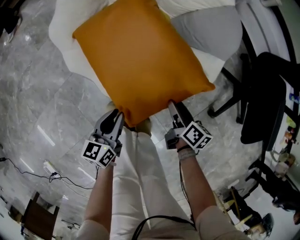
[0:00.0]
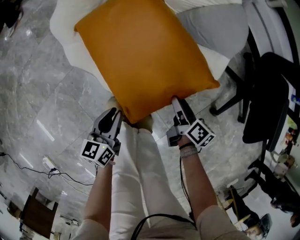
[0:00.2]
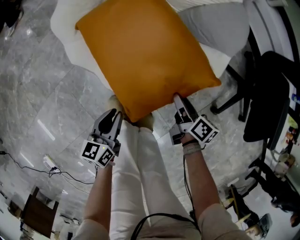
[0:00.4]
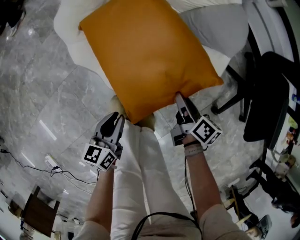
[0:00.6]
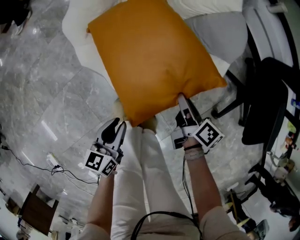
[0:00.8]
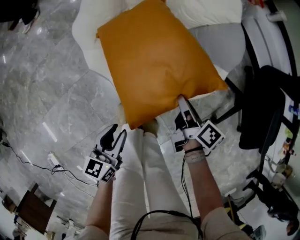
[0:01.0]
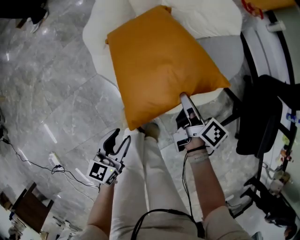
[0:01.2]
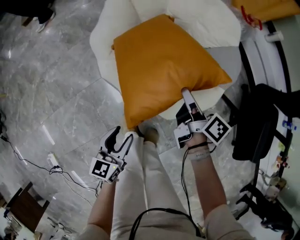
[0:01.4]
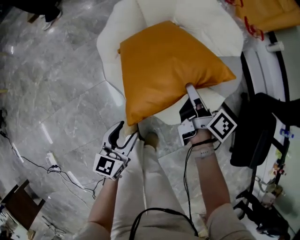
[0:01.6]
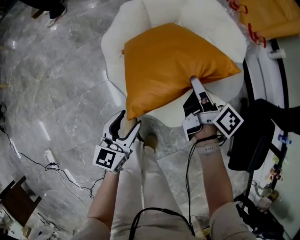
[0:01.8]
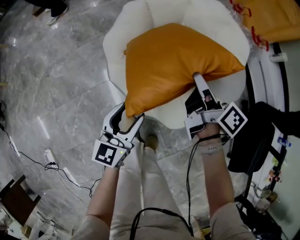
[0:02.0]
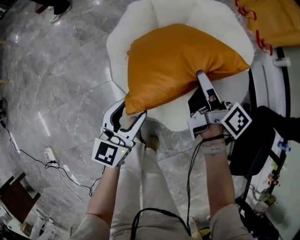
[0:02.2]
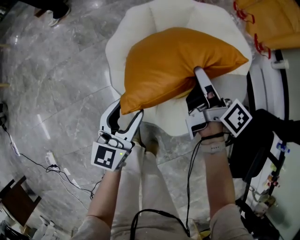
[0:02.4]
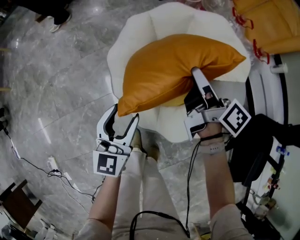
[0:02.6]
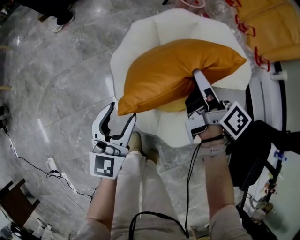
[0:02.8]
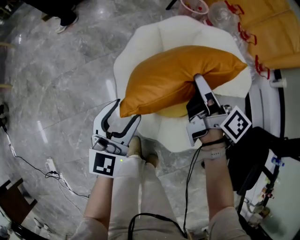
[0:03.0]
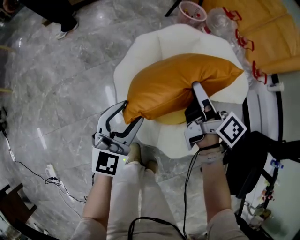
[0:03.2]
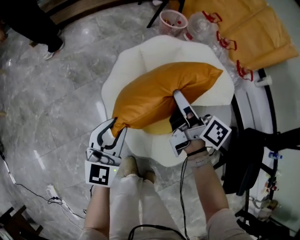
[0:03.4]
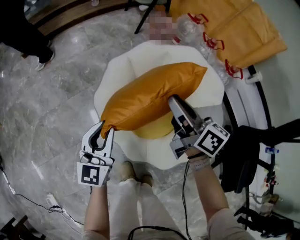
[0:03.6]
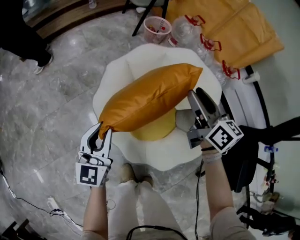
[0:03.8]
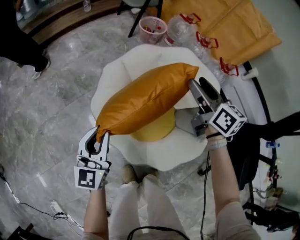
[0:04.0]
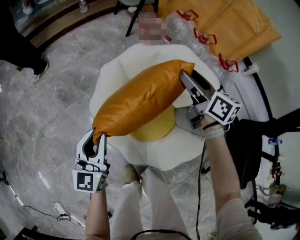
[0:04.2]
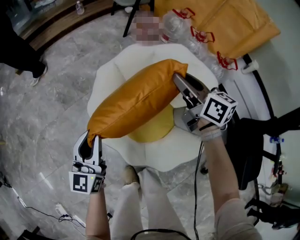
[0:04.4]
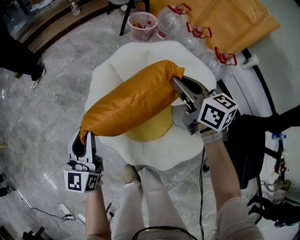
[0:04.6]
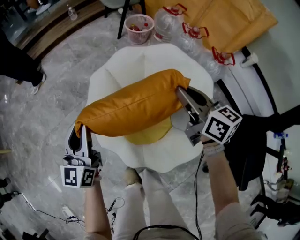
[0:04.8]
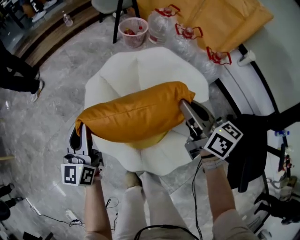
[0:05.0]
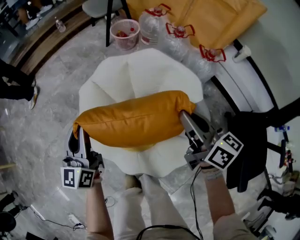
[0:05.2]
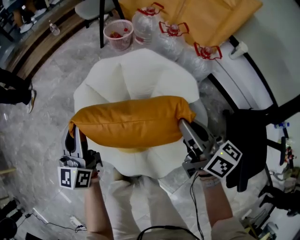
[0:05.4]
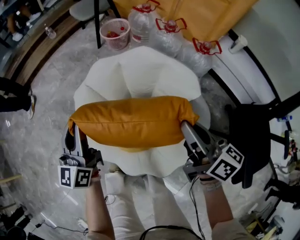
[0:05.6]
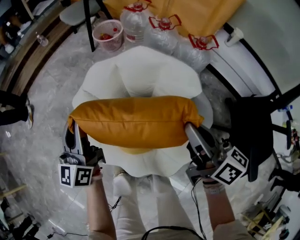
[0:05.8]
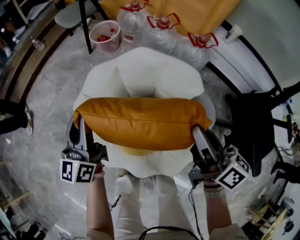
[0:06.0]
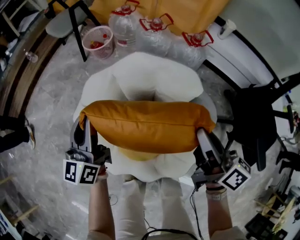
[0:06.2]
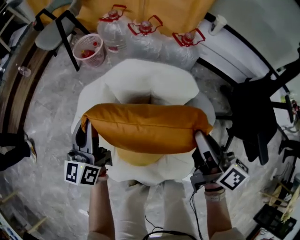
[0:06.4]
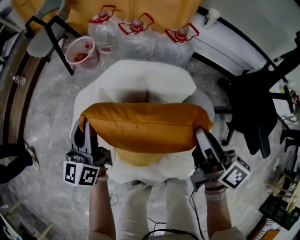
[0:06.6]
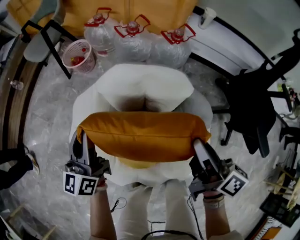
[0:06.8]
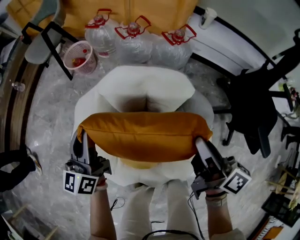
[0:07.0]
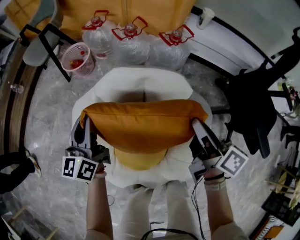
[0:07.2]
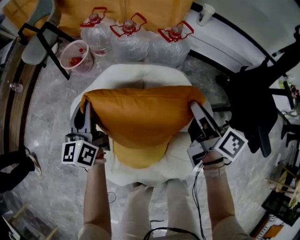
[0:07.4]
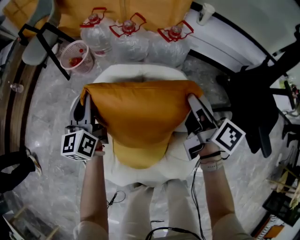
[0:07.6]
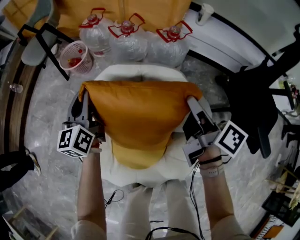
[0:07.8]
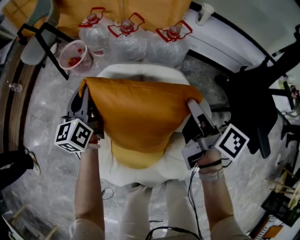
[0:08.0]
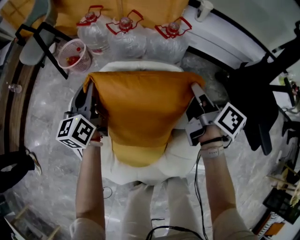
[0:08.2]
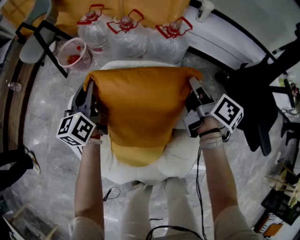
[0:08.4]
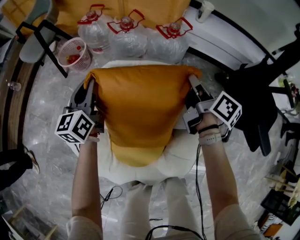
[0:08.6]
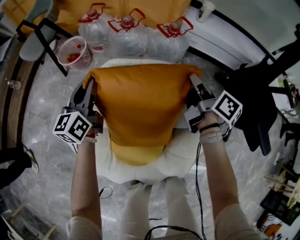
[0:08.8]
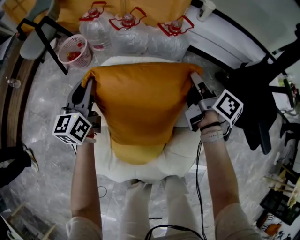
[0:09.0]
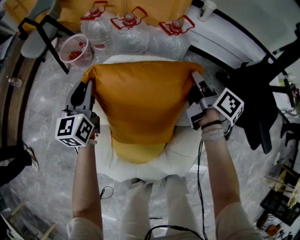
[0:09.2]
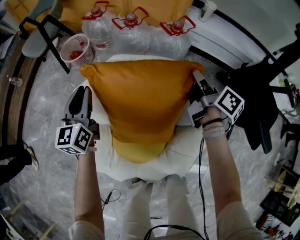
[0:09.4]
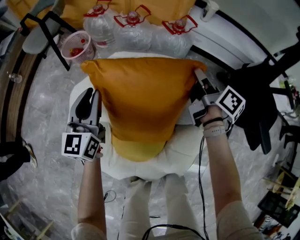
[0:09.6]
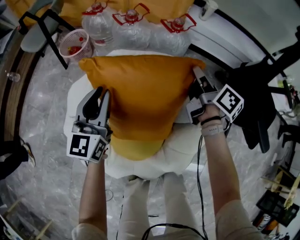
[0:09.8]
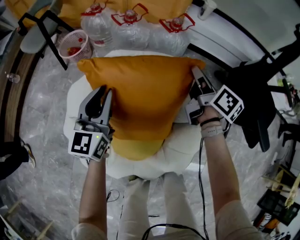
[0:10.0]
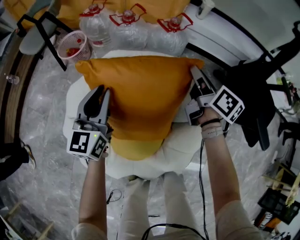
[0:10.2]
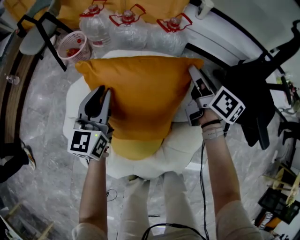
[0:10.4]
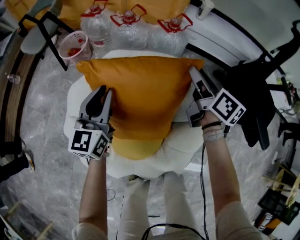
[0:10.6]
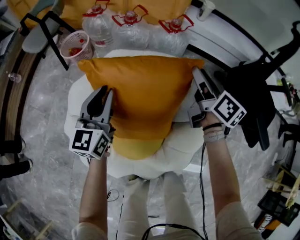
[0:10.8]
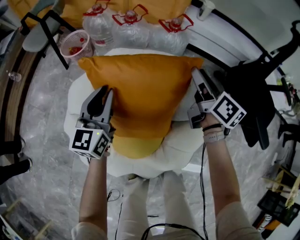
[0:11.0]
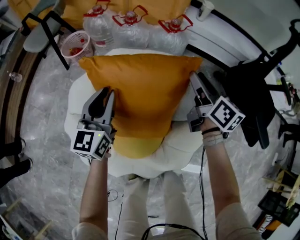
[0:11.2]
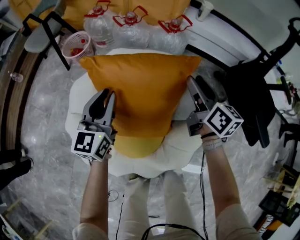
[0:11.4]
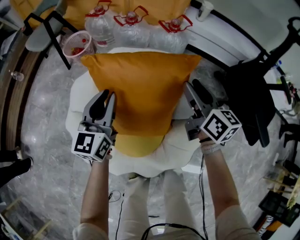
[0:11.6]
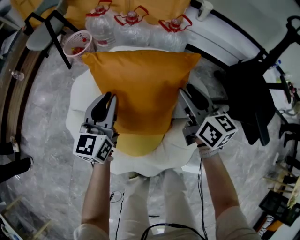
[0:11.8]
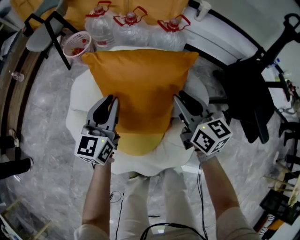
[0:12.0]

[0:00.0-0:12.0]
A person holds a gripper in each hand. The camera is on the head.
0:00.0 to 0:01.6: The left gripper moves upward and to the left, about 15 cm, and opens up; the right gripper is displaced upward, forward and to the left by roughly 30 cm, and closes.
0:01.6 to 0:03.0: The left gripper goes some 25 cm forward and upward, and swivels some 30 degrees; the right gripper shifts approximately 20 cm forward, upward and to the left.
0:03.0 to 0:04.4: The right gripper shifts some 10 cm to the right and forward, changes its angle by about 30 degrees, and opens, then closes once more; the left gripper moves forward, about 5 cm, and closes.
0:04.4 to 0:06.0: The left gripper moves forward and to the right, about 25 cm, while the right gripper goes about 15 cm to the right and backward, turns by approximately 40 degrees, and closes up.
0:06.0 to 0:07.6: The right gripper is displaced forward, downward and to the right by some 15 cm, and rotates approximately 30 degrees. Meanwhile the left gripper shifts roughly 20 cm forward and to the right.
0:07.6 to 0:09.0: The right gripper moves forward, roughly 5 cm.
0:09.0 to 0:10.4: The left gripper is displaced backward and to the right by some 10 cm; the right gripper opens up.
0:10.4 to 0:12.0: The left gripper shifts roughly 5 cm backward; the right gripper goes roughly 15 cm backward and to the left, and changes its angle by approximately 30 degrees.

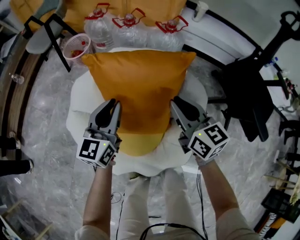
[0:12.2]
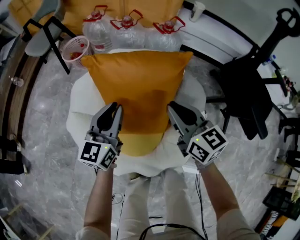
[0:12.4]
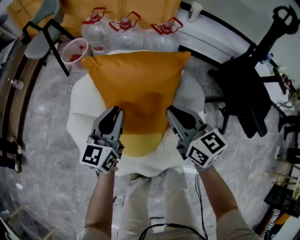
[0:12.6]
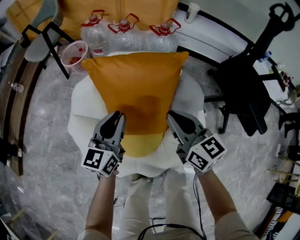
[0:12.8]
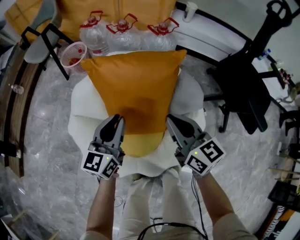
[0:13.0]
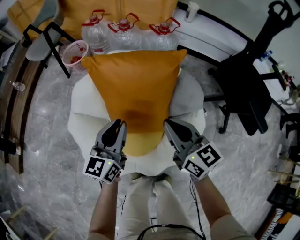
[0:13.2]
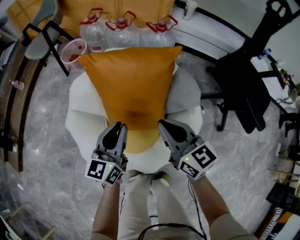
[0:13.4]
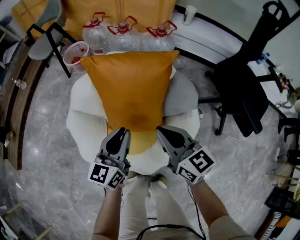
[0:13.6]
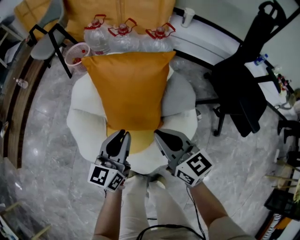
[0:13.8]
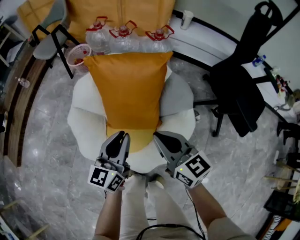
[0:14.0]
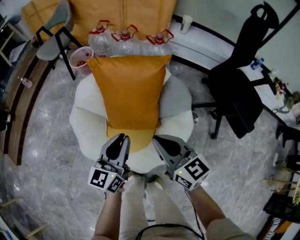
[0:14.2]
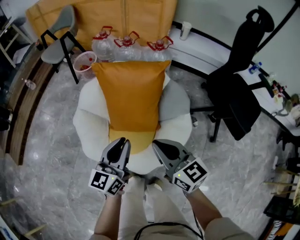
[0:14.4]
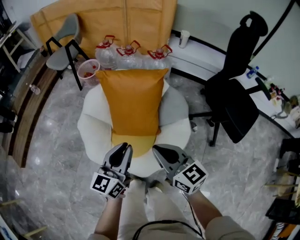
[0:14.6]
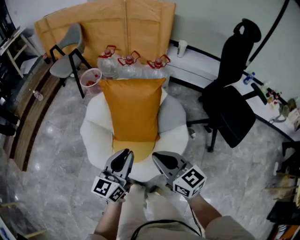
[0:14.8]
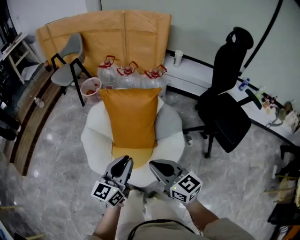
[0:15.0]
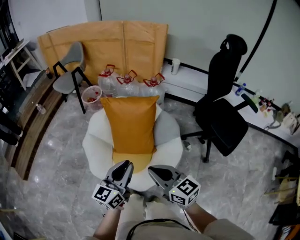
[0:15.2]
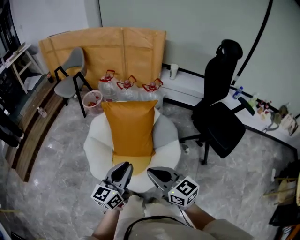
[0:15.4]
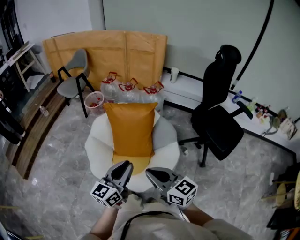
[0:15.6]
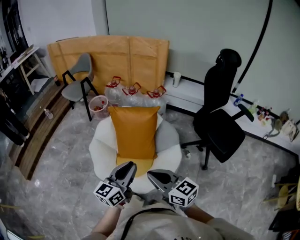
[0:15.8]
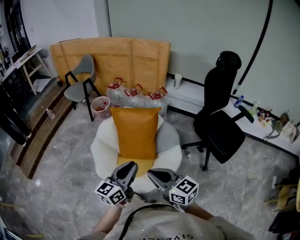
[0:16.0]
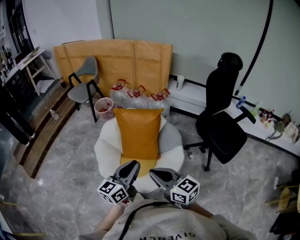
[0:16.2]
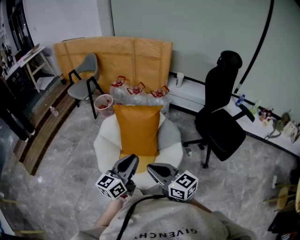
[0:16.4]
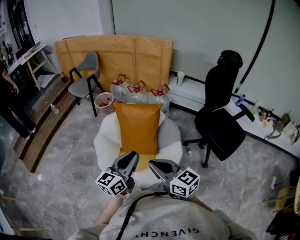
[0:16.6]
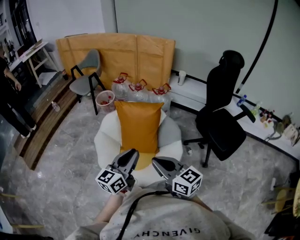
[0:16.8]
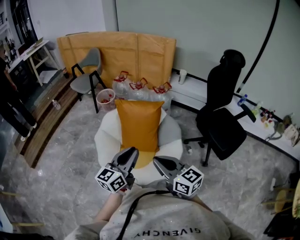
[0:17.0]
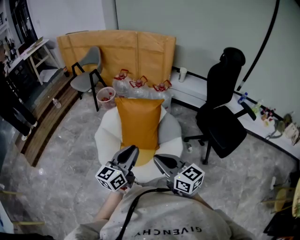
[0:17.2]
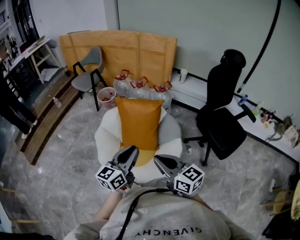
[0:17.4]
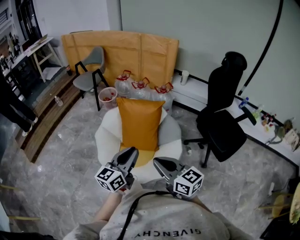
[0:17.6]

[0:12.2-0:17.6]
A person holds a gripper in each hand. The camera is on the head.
0:12.2 to 0:13.6: Both grippers move backward, about 10 cm.
0:13.6 to 0:15.0: The right gripper heads backward and upward, covering some 20 cm; the left gripper moves upward and backward, some 20 cm.
0:15.0 to 0:16.2: The left gripper shifts approximately 10 cm upward. Meanwhile the right gripper travels upward and backward by some 10 cm.
0:16.2 to 0:17.6: There are only small adjustments of the grippers.

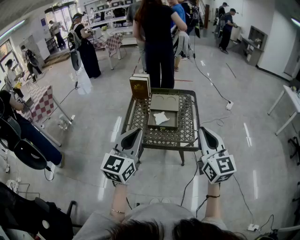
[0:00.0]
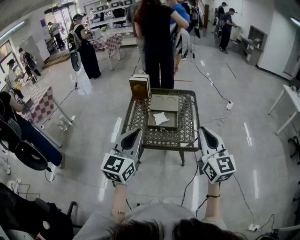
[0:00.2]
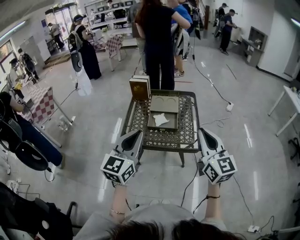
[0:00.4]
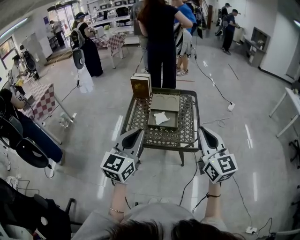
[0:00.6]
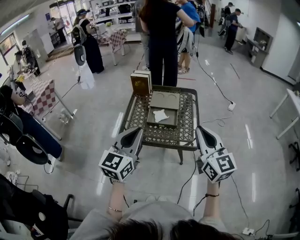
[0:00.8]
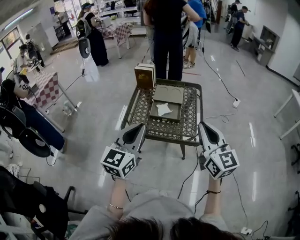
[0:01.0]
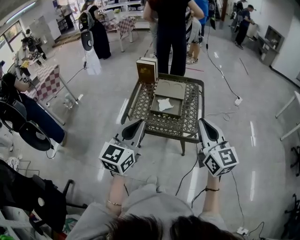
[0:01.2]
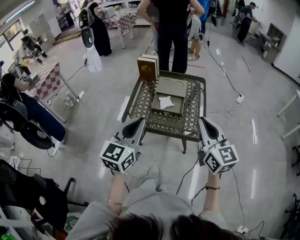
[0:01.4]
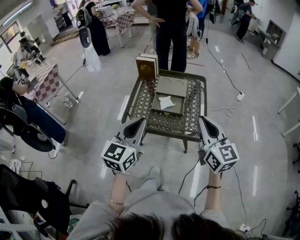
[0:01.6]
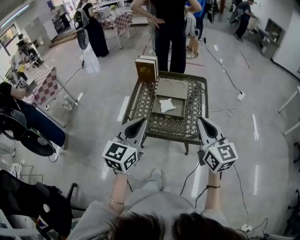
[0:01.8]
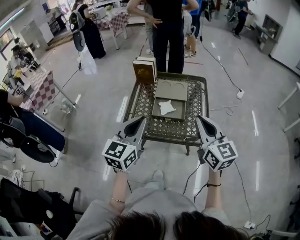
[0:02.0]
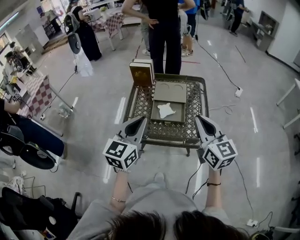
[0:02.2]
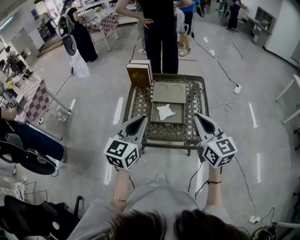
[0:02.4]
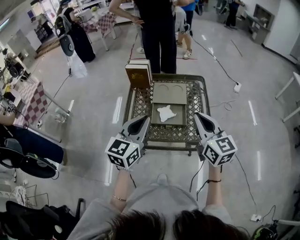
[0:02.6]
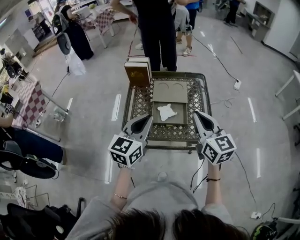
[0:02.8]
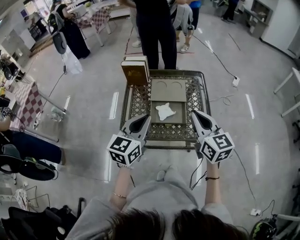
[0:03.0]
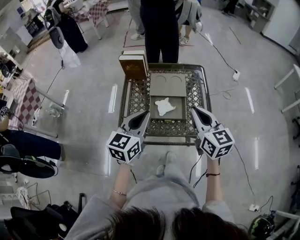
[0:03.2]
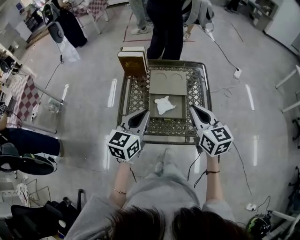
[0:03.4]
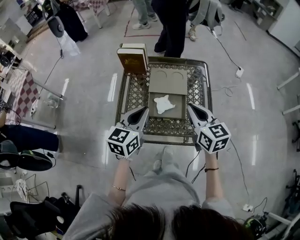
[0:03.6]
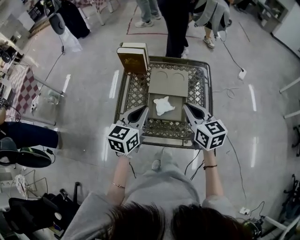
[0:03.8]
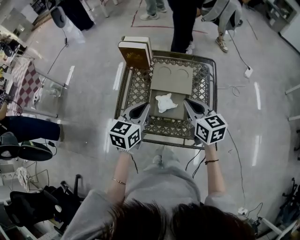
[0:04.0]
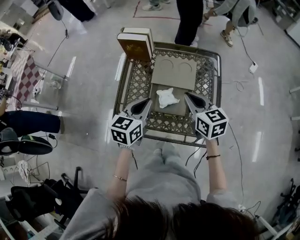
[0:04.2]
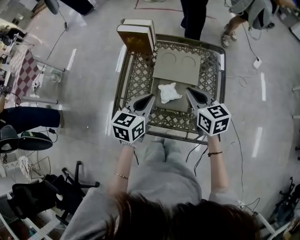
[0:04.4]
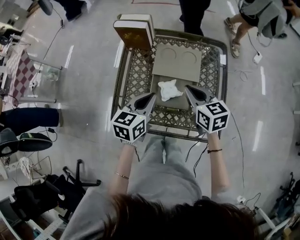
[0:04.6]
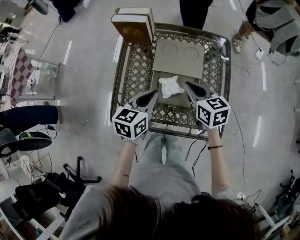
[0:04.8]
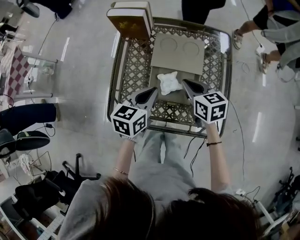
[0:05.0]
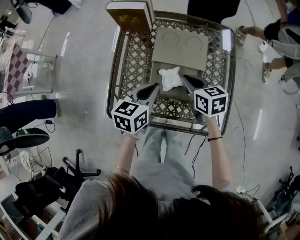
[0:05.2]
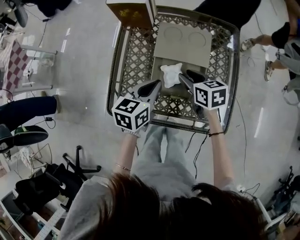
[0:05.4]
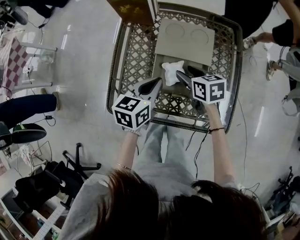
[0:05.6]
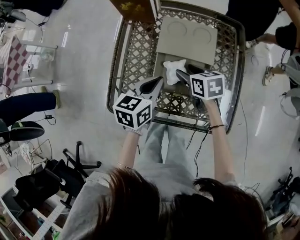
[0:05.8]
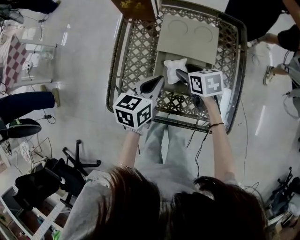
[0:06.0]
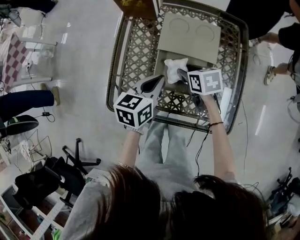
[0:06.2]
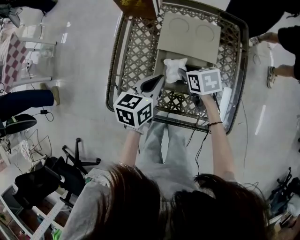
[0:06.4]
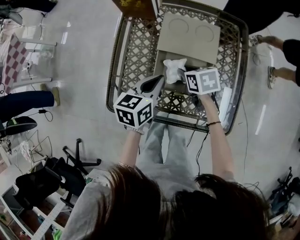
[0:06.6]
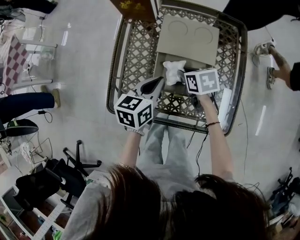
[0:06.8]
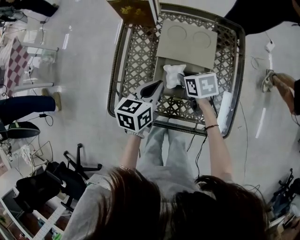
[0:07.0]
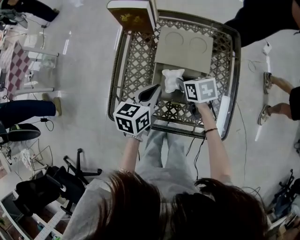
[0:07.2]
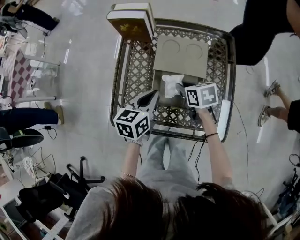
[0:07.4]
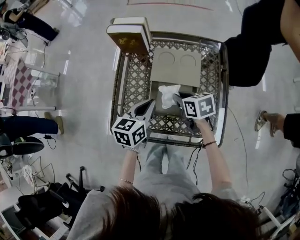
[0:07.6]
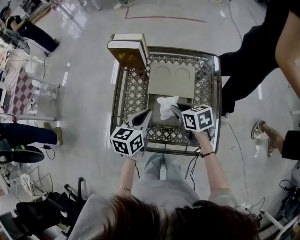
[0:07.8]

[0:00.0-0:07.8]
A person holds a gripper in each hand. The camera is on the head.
0:00.0 to 0:01.6: The right gripper moves about 5 cm.
0:01.6 to 0:03.2: The grippers both shift forward and downward by approximately 20 cm.
0:03.2 to 0:04.6: The two grippers go approximately 20 cm downward and forward. The right gripper changes its angle by roughly 20 degrees.
0:04.6 to 0:06.2: The left gripper is displaced downward by approximately 10 cm. The right gripper goes about 15 cm downward, swivels about 30 degrees, and opens.
0:06.2 to 0:07.8: The two grippers go roughly 10 cm upward. The right gripper closes its fingers.
